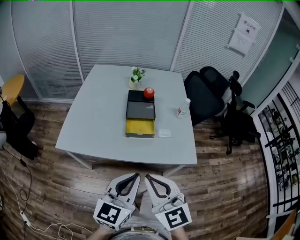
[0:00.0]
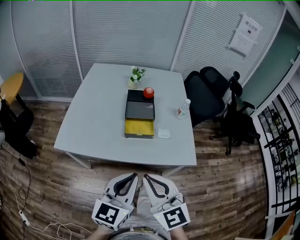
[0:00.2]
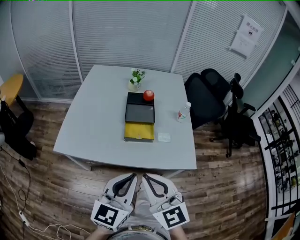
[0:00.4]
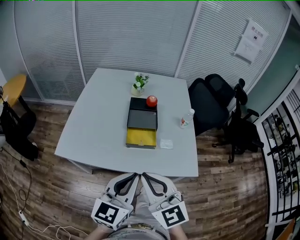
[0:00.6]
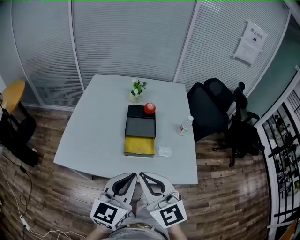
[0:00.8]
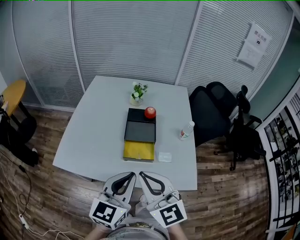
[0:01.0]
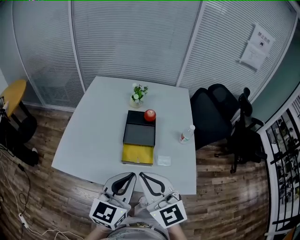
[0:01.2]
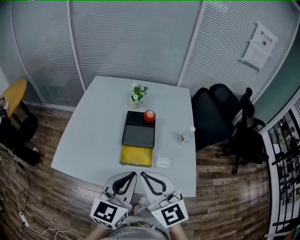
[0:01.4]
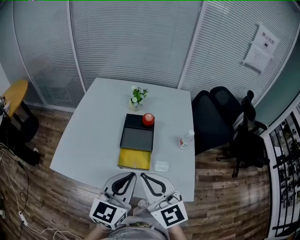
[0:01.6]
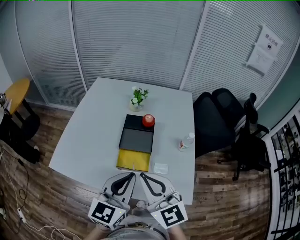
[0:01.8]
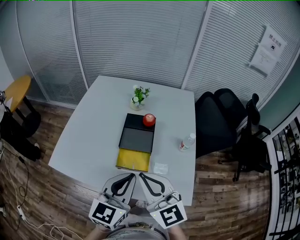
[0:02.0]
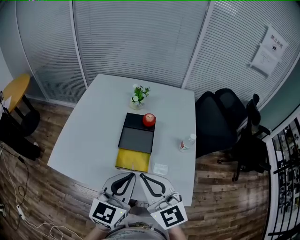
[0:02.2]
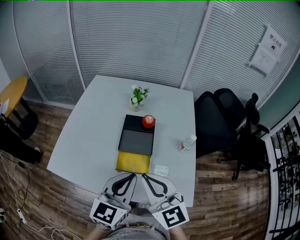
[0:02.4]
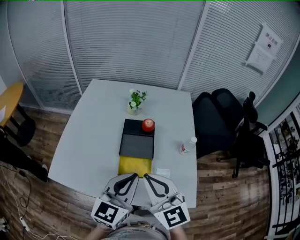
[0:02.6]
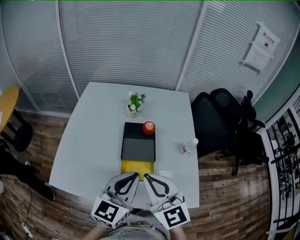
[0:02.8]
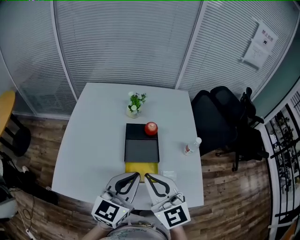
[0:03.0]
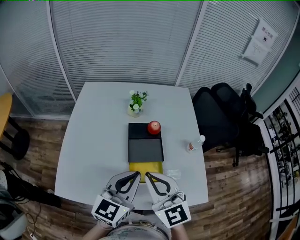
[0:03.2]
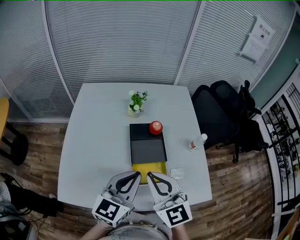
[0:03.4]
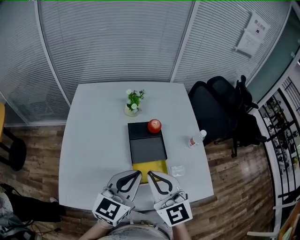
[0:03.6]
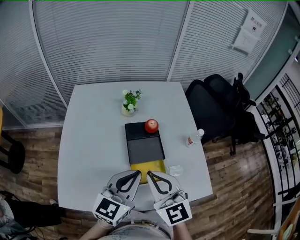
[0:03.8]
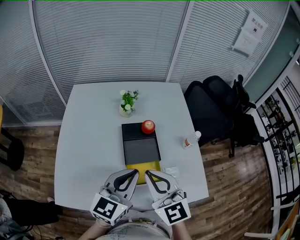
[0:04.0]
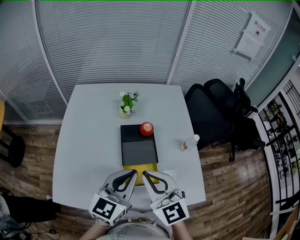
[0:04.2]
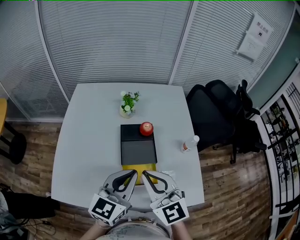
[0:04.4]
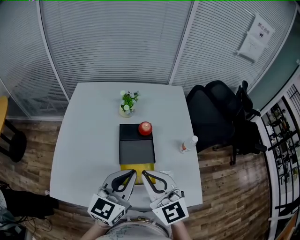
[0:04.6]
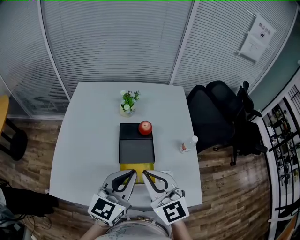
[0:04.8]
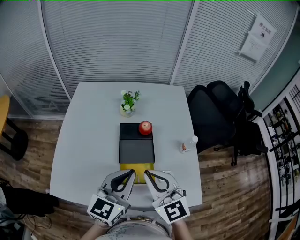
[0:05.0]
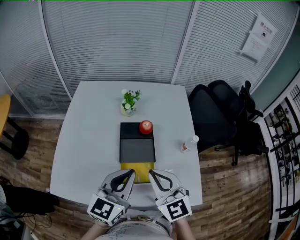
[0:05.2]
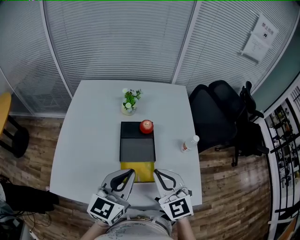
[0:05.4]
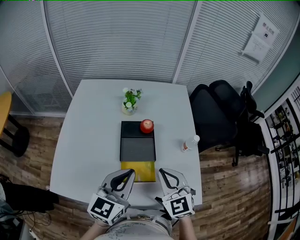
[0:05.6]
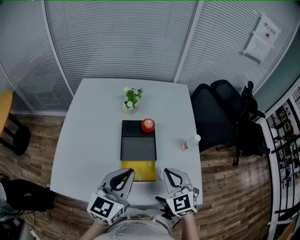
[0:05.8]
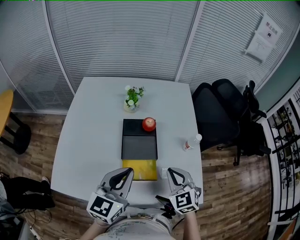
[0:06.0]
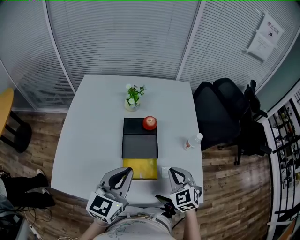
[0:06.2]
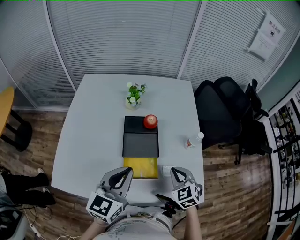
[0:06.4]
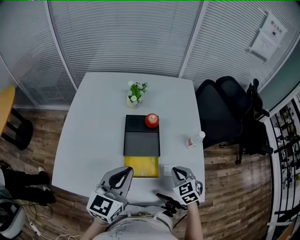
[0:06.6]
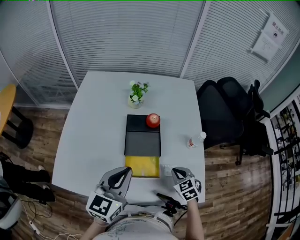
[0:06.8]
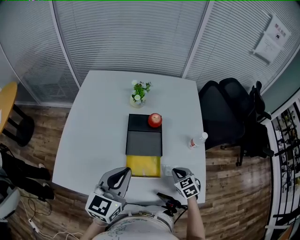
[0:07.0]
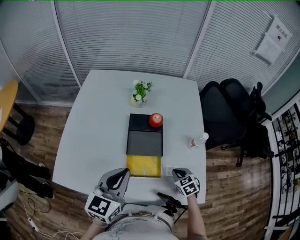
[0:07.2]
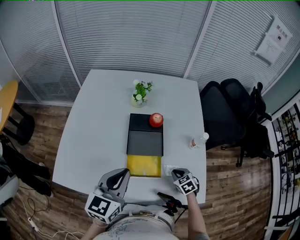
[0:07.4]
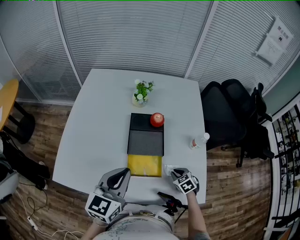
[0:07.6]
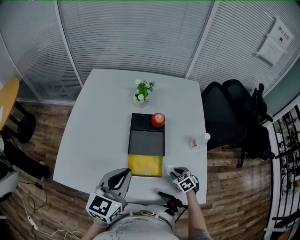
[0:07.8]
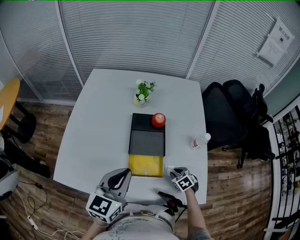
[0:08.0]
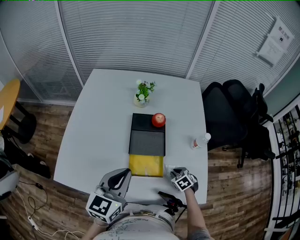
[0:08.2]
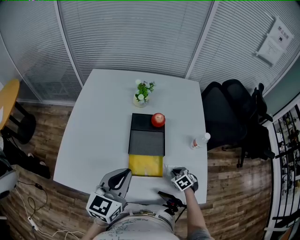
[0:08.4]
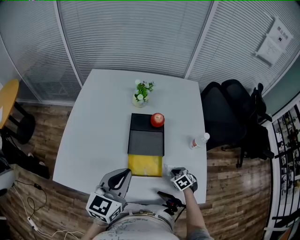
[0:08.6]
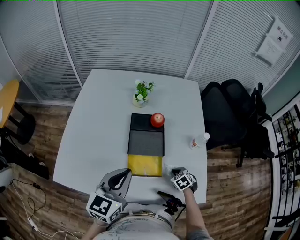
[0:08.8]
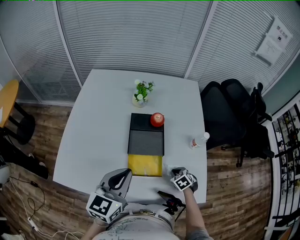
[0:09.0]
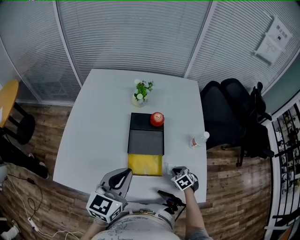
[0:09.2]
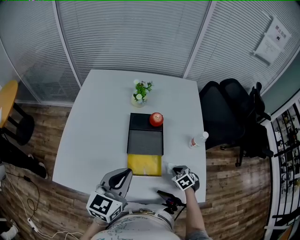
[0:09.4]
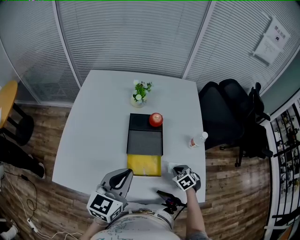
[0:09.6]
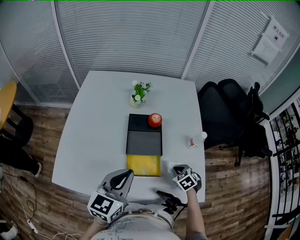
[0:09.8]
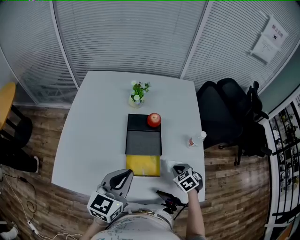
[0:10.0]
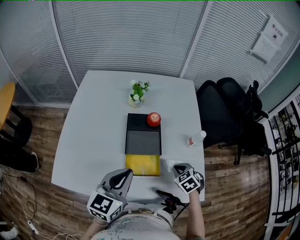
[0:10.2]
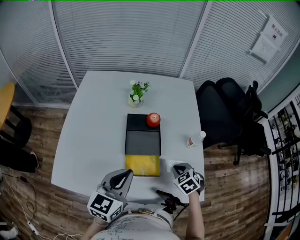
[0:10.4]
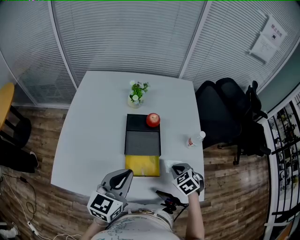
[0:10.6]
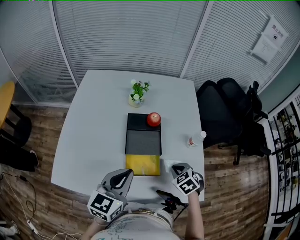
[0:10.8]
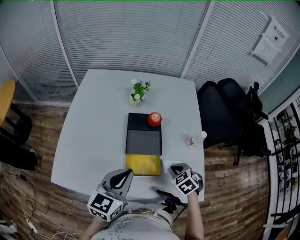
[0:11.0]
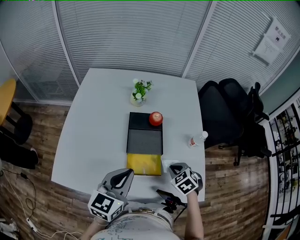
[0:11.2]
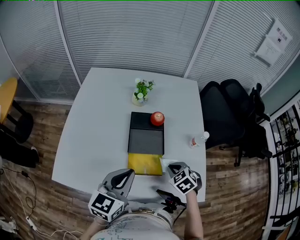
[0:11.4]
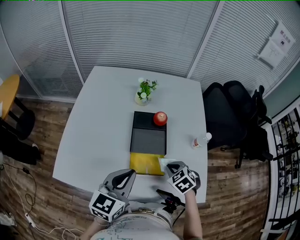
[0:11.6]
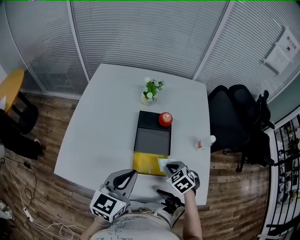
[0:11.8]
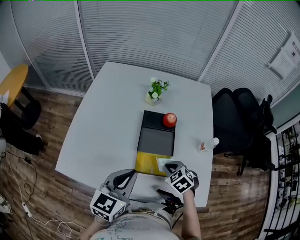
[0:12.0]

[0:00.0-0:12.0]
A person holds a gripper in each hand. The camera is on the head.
0:00.0 to 0:01.6: The grippers both shift forward by about 20 cm.
0:01.6 to 0:03.0: Both grippers travel together forward, approximately 10 cm.
0:04.4 to 0:06.0: The right gripper shifts roughly 20 cm to the right and downward, and rotates roughly 20 degrees.
0:06.0 to 0:07.6: The right gripper shifts roughly 20 cm downward, and changes its angle by roughly 30 degrees.
0:07.6 to 0:09.0: The grippers stay close to where they were, moving slightly.
0:09.0 to 0:10.4: The right gripper travels upward by about 15 cm.
0:10.4 to 0:12.0: The right gripper goes about 10 cm to the left.

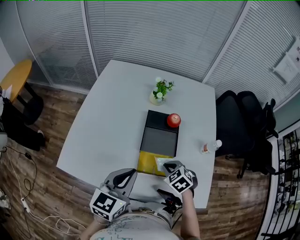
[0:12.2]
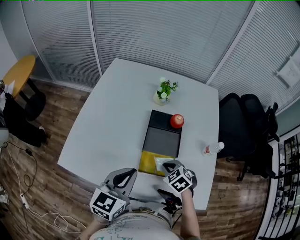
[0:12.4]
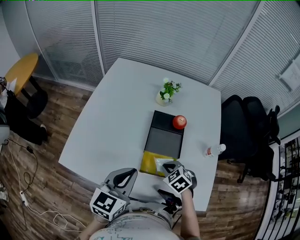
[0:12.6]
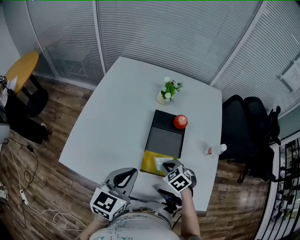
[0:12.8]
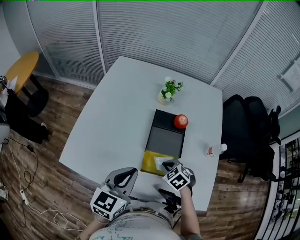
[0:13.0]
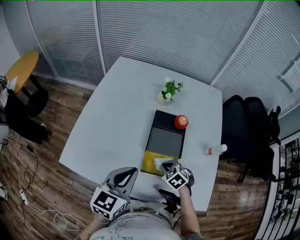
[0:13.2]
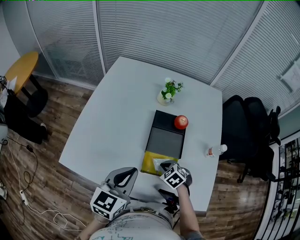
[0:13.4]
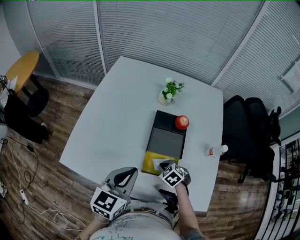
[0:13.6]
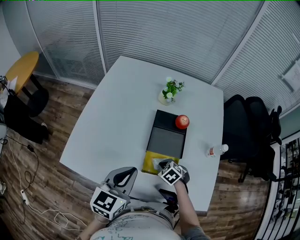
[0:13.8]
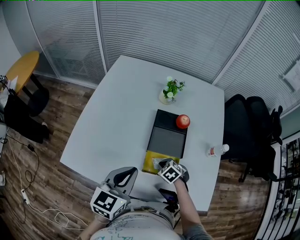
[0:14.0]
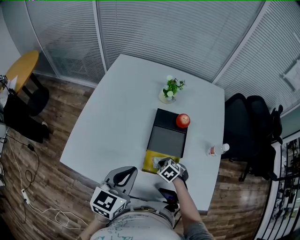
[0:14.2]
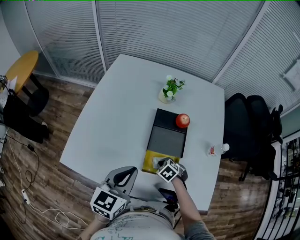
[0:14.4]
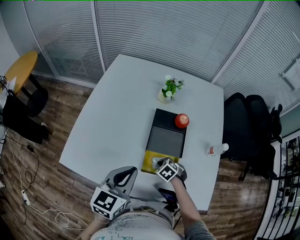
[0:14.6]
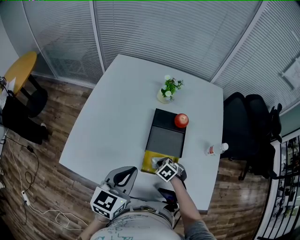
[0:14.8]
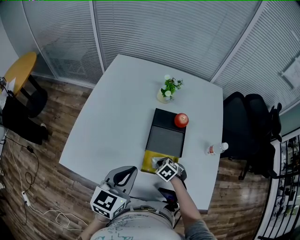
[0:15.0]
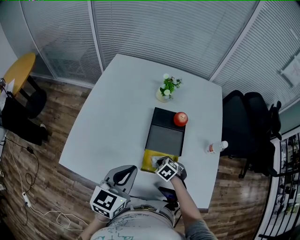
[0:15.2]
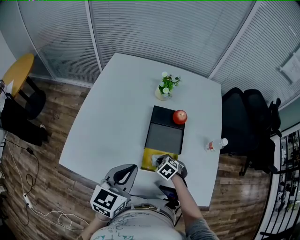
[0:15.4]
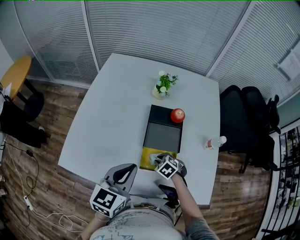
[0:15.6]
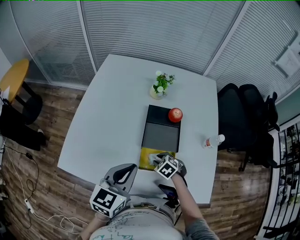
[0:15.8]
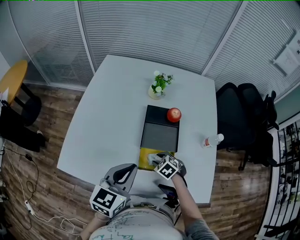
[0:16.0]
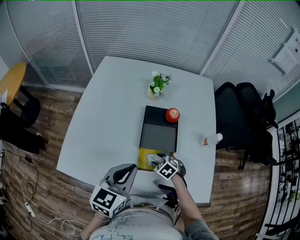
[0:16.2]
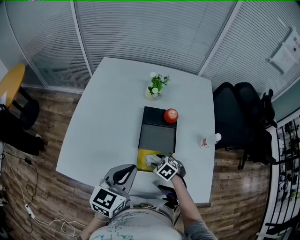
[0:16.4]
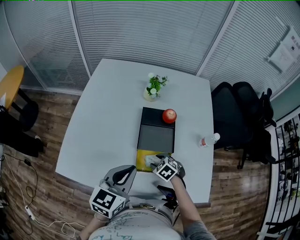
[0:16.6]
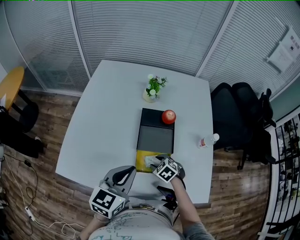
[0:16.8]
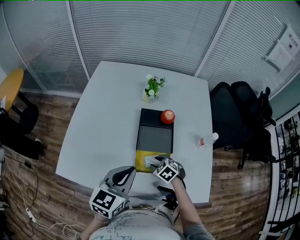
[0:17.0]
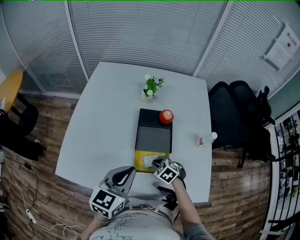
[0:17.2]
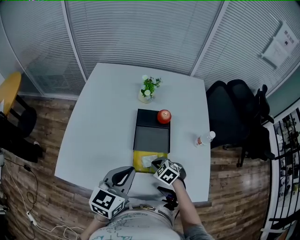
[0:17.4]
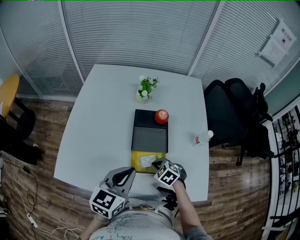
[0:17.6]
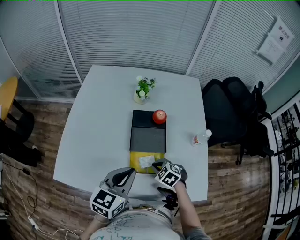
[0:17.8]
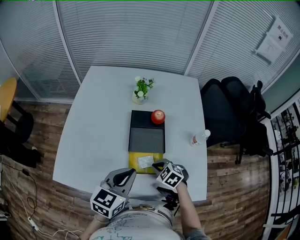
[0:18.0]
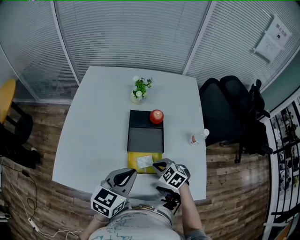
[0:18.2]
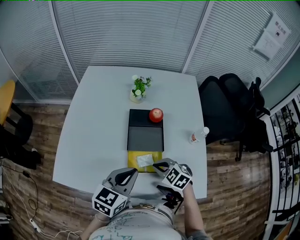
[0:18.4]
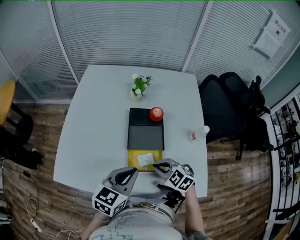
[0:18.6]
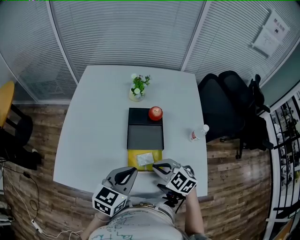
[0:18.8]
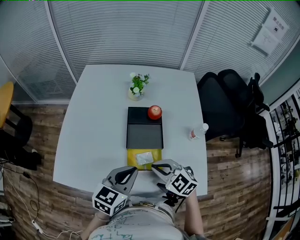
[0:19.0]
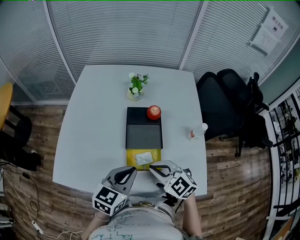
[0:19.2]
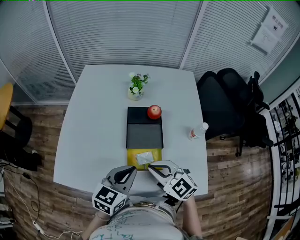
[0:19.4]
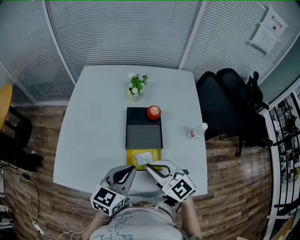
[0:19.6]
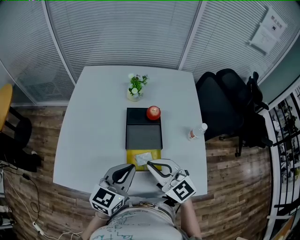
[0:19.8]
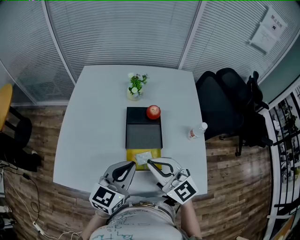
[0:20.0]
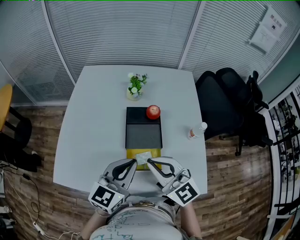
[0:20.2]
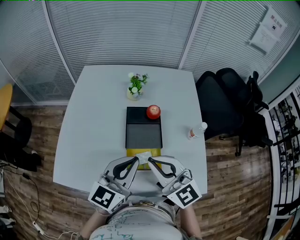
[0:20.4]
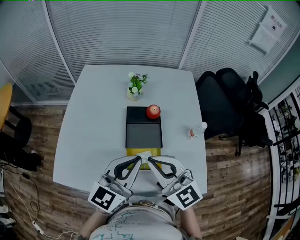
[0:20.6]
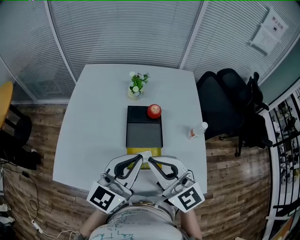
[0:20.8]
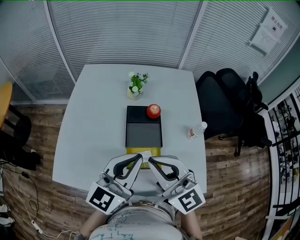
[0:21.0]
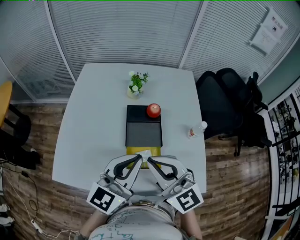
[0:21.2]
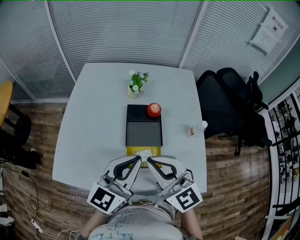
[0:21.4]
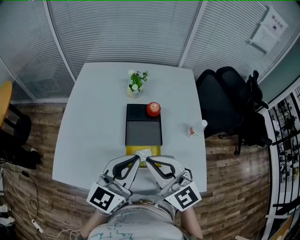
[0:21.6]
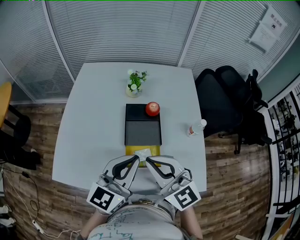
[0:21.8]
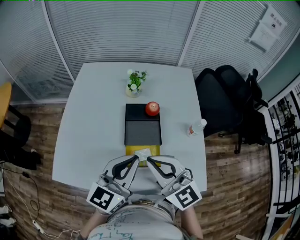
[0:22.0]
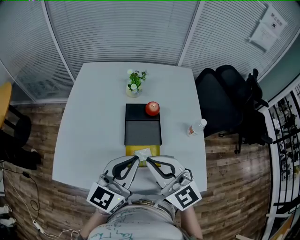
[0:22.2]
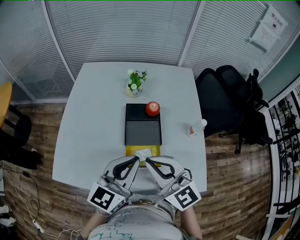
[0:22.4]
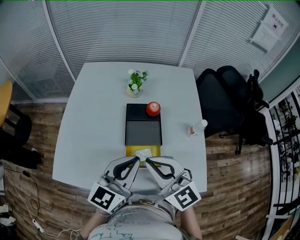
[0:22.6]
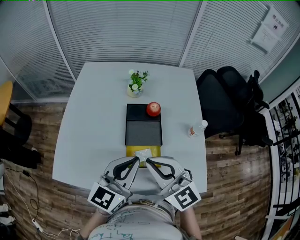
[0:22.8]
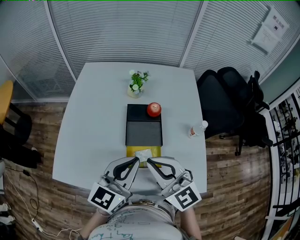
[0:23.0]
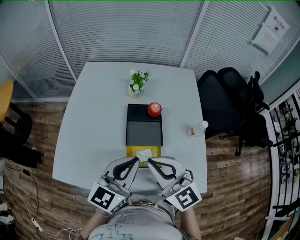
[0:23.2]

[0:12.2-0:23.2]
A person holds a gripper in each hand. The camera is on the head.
0:12.2 to 0:13.8: The right gripper goes approximately 10 cm downward.
0:13.8 to 0:15.4: The grippers move only a little.
0:15.4 to 0:17.0: The right gripper opens.
0:17.0 to 0:18.4: The left gripper ends up approximately 5 cm from where it was. Meanwhile the right gripper is displaced upward by roughly 10 cm, and closes.
0:18.4 to 0:20.0: The right gripper moves upward, about 20 cm, and points its fingers approximately 40 degrees further upward.
0:20.0 to 0:21.6: The grippers both shift upward by some 5 cm.
0:21.6 to 0:23.2: There are only small adjustments of the grippers.

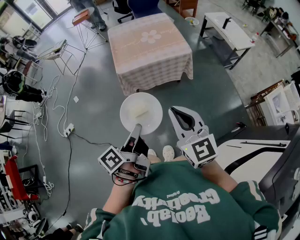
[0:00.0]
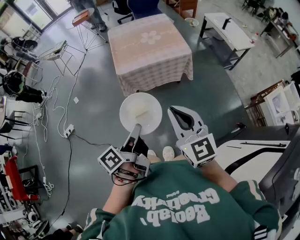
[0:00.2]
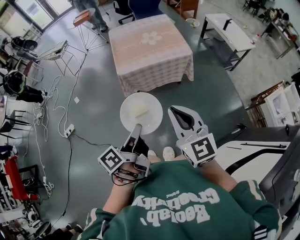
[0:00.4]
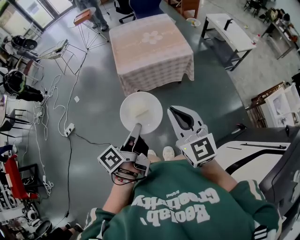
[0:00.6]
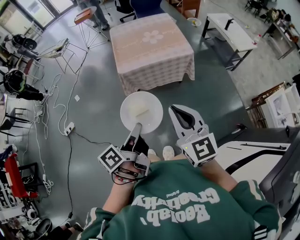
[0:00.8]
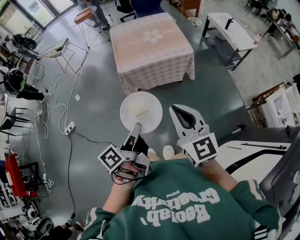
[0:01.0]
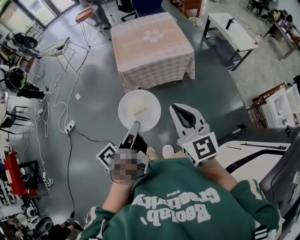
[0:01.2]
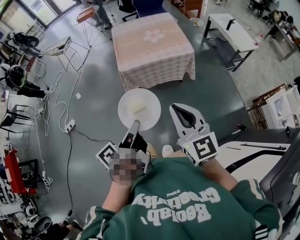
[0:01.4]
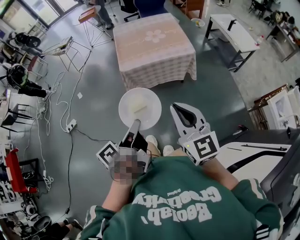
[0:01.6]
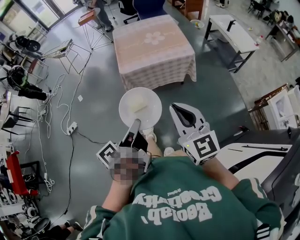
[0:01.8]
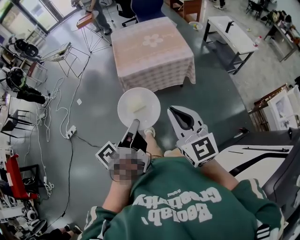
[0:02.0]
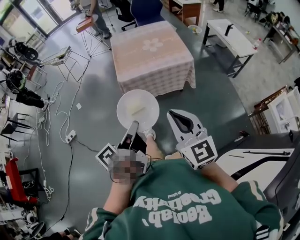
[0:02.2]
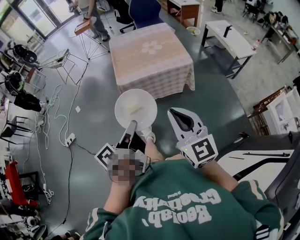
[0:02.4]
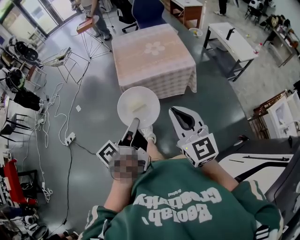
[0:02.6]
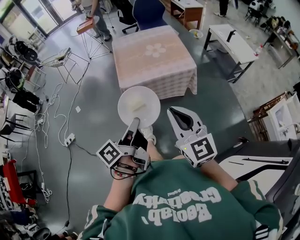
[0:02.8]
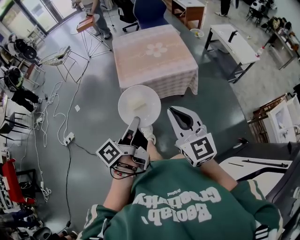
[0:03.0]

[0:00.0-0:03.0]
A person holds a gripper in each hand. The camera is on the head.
0:01.6 to 0:03.0: The right gripper shifts by about 10 cm.
